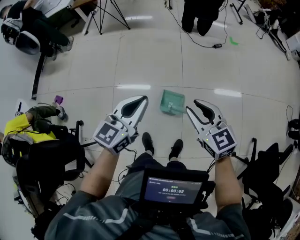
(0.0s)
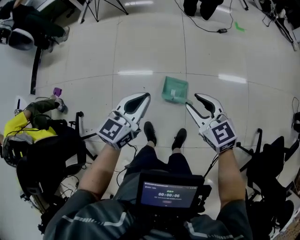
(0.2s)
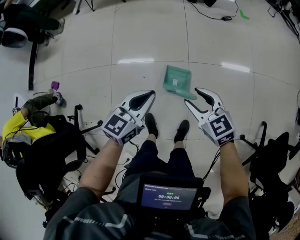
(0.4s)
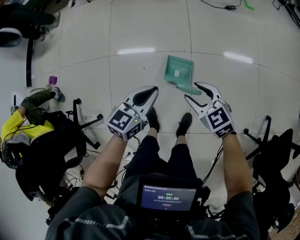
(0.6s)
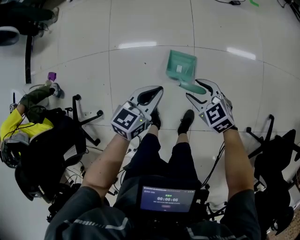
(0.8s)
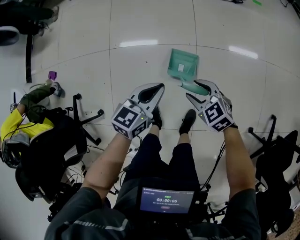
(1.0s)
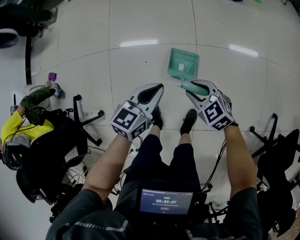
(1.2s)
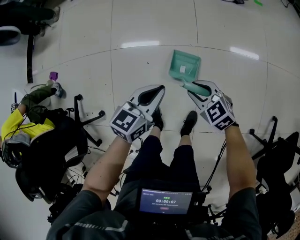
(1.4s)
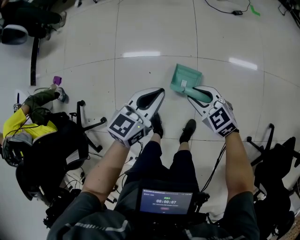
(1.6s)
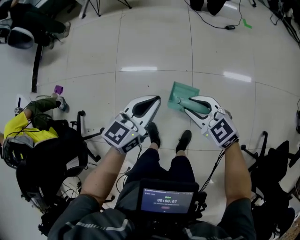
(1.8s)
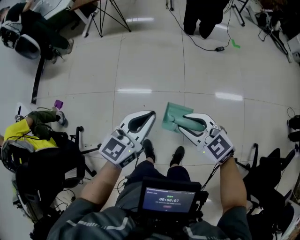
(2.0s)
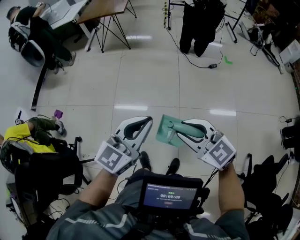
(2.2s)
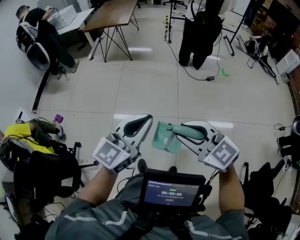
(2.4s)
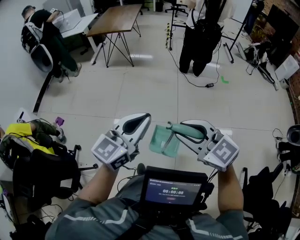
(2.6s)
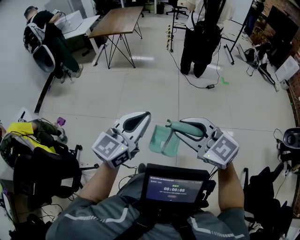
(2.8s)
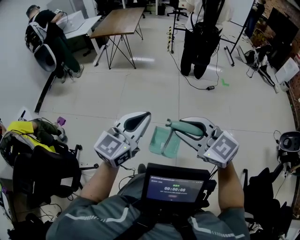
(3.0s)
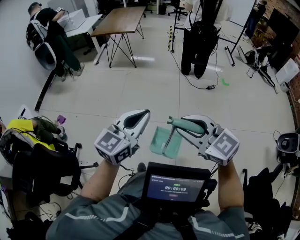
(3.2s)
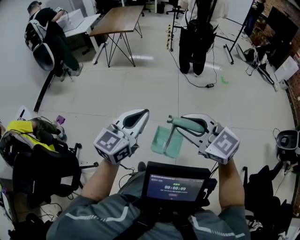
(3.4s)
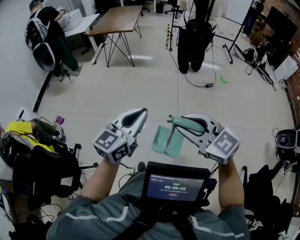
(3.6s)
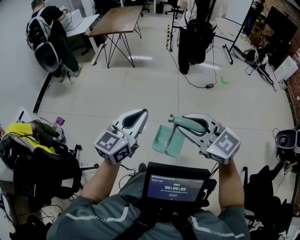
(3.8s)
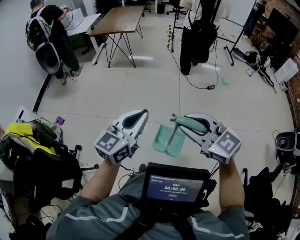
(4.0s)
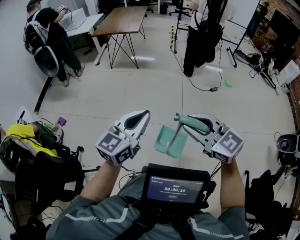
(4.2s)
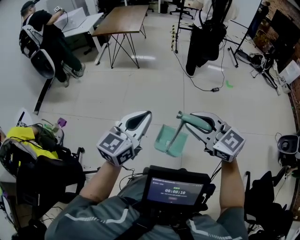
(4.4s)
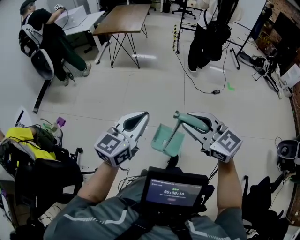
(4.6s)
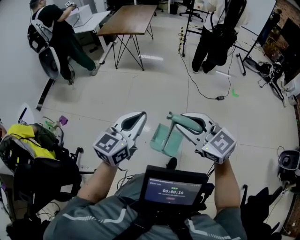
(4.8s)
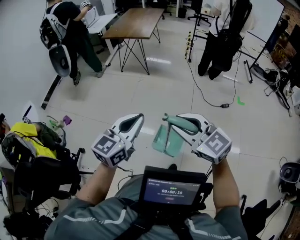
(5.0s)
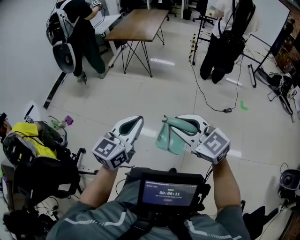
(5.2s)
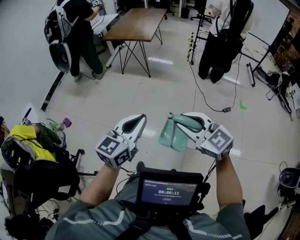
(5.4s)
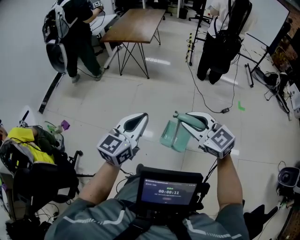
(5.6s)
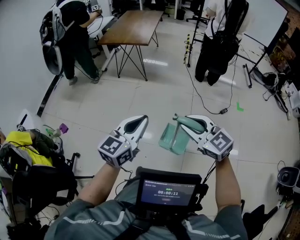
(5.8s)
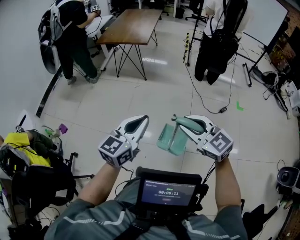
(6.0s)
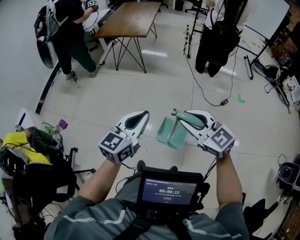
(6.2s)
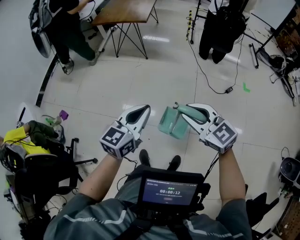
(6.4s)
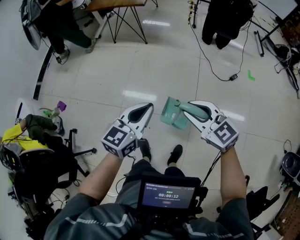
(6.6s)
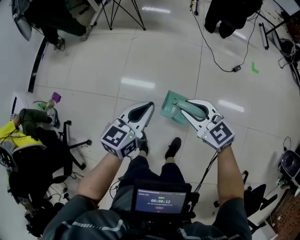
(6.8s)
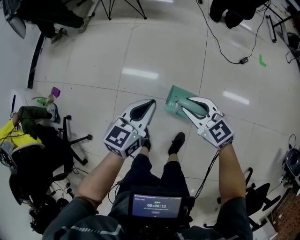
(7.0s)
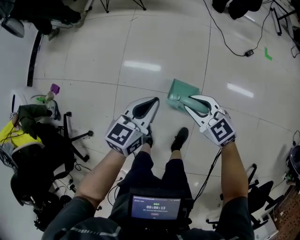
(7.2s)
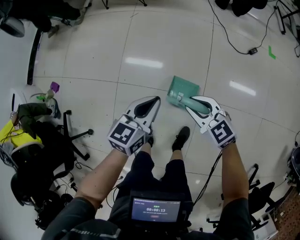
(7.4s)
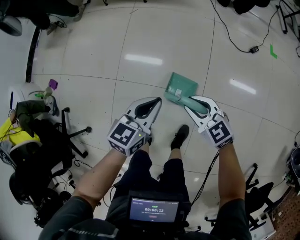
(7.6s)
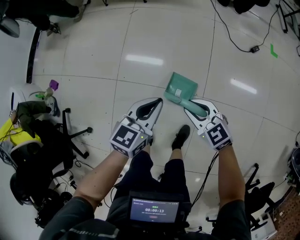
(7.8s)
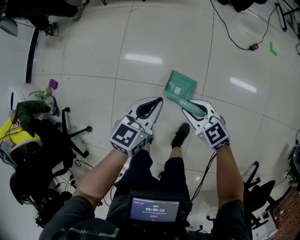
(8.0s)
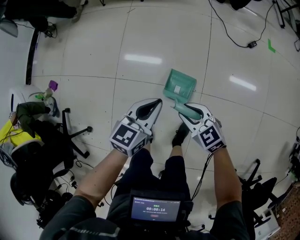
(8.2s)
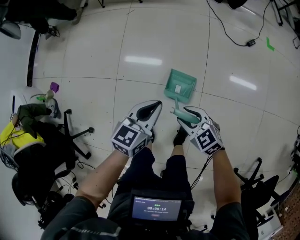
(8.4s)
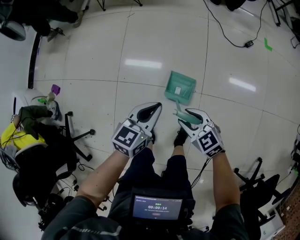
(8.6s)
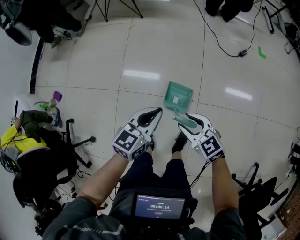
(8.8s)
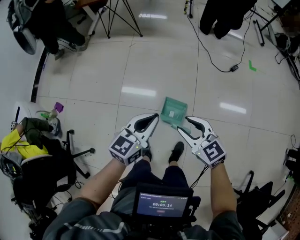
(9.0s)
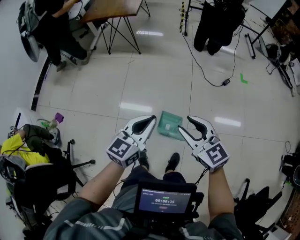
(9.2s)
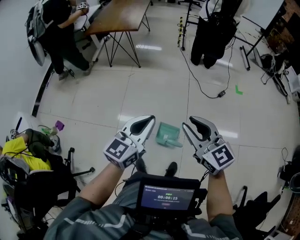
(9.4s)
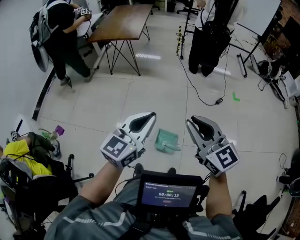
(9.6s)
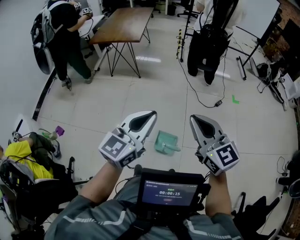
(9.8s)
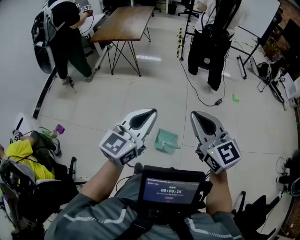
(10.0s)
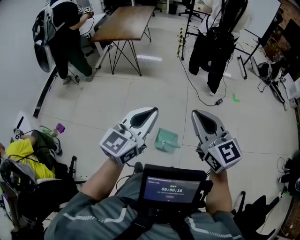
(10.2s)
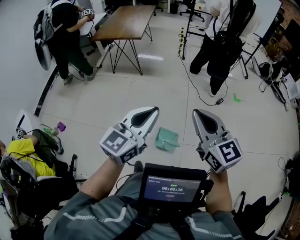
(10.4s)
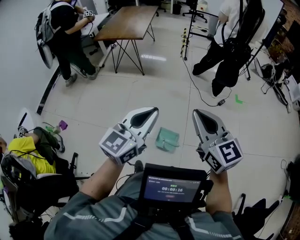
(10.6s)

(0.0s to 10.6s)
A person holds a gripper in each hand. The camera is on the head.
0.0s - 1.6s: Both grippers travel together downward, about 30 cm. The right gripper changes its angle by approximately 20 degrees, and opens, then closes once more.
1.6s - 3.0s: Both grippers move upward, some 50 cm. The left gripper rotates about 20 degrees. Meanwhile the right gripper swivels approximately 20 degrees.
3.0s - 4.6s: The left gripper travels forward and to the left by some 20 cm. Meanwhile the right gripper shifts approximately 20 cm forward.
4.6s - 6.0s: Both grippers move forward and to the right, approximately 25 cm.
6.0s - 7.6s: The grippers both shift downward by roughly 50 cm. The left gripper turns by some 20 degrees.
7.6s - 9.0s: The grippers both shift upward by approximately 25 cm.
9.0s - 10.6s: Both grippers move upward, roughly 35 cm. The right gripper turns by roughly 30 degrees, and closes.

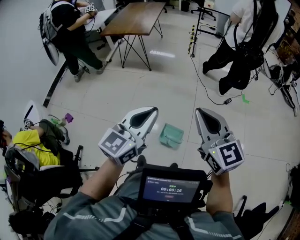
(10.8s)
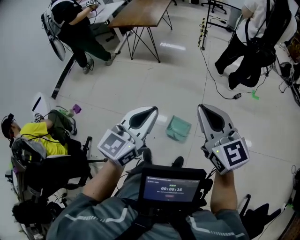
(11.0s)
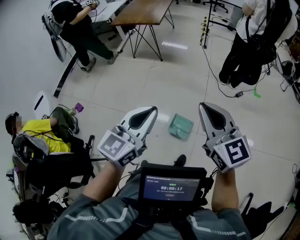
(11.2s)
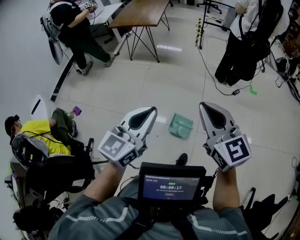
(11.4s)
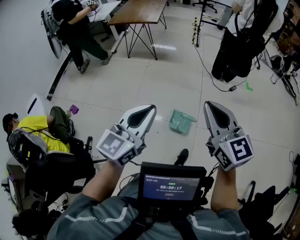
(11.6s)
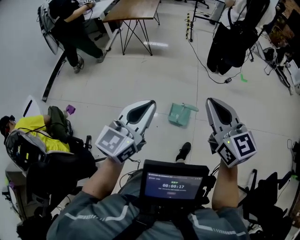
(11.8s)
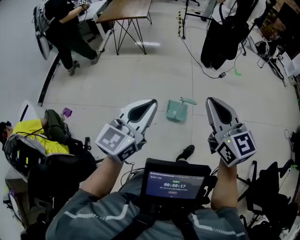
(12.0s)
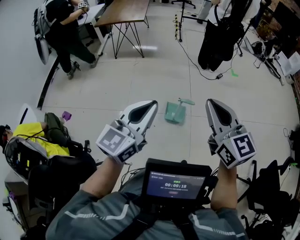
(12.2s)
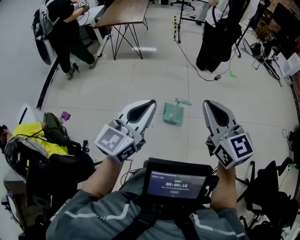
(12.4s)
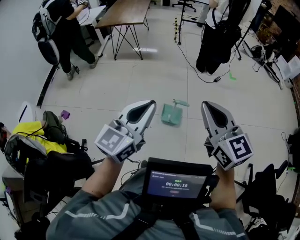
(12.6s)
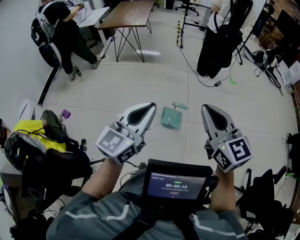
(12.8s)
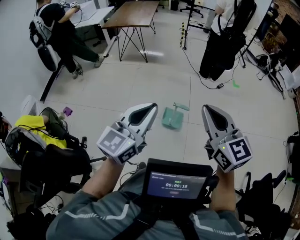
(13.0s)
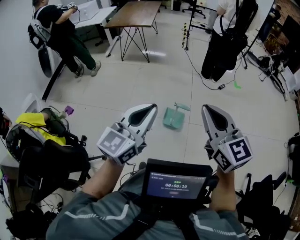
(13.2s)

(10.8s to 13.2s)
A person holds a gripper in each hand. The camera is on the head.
10.8s - 12.0s: The grippers both shift backward and to the left by approximately 35 cm.
12.0s - 13.2s: Both grippers move to the right and backward, approximately 10 cm.

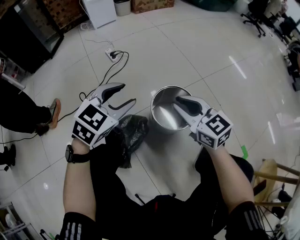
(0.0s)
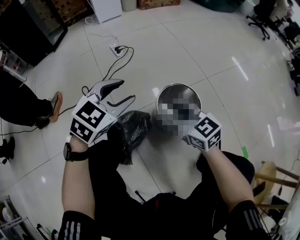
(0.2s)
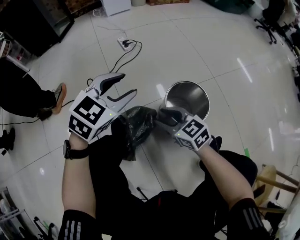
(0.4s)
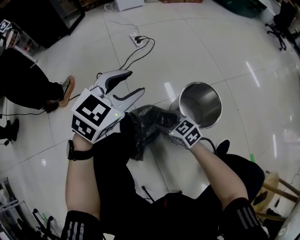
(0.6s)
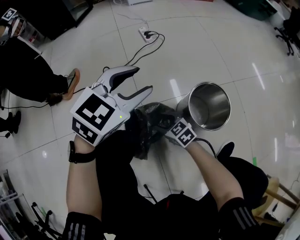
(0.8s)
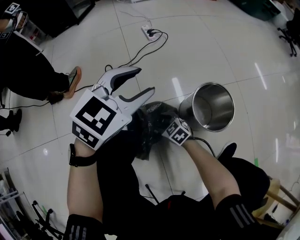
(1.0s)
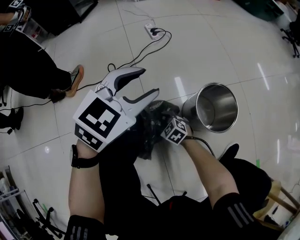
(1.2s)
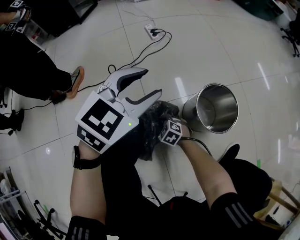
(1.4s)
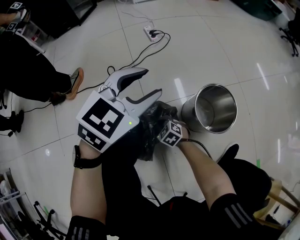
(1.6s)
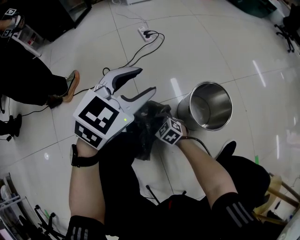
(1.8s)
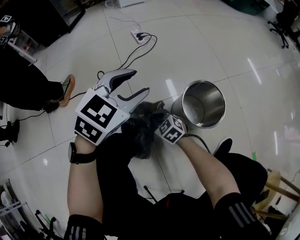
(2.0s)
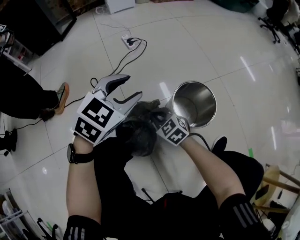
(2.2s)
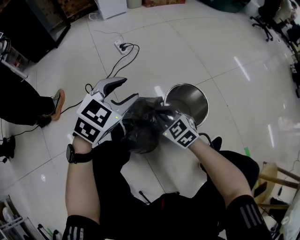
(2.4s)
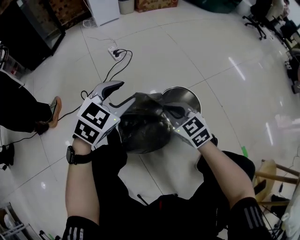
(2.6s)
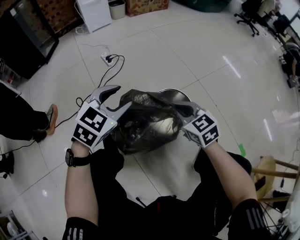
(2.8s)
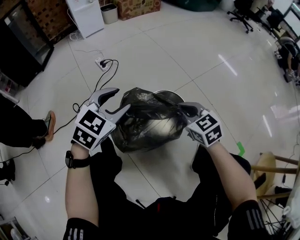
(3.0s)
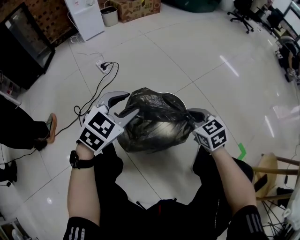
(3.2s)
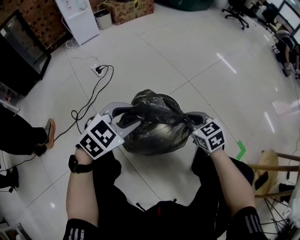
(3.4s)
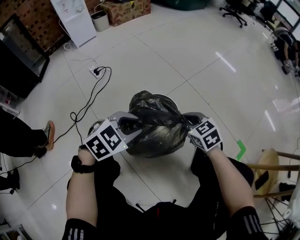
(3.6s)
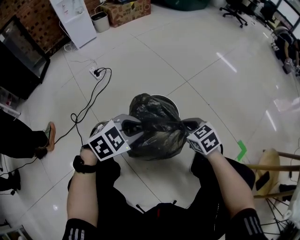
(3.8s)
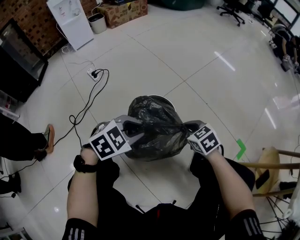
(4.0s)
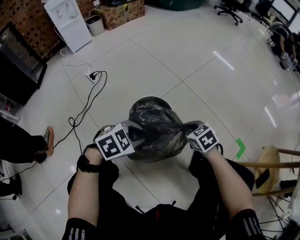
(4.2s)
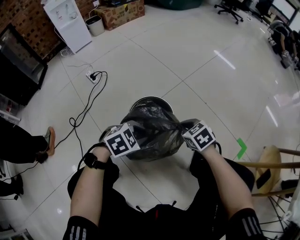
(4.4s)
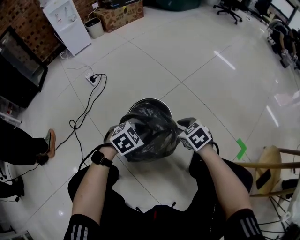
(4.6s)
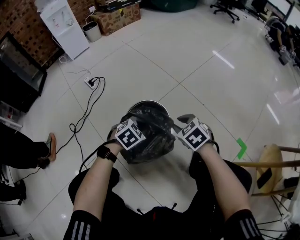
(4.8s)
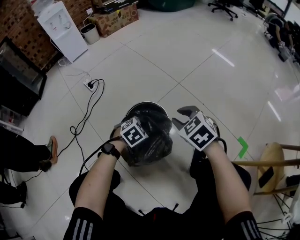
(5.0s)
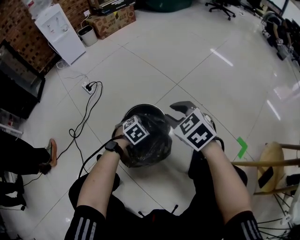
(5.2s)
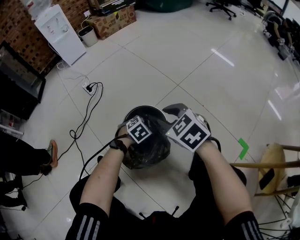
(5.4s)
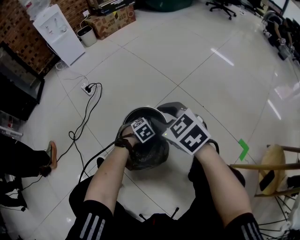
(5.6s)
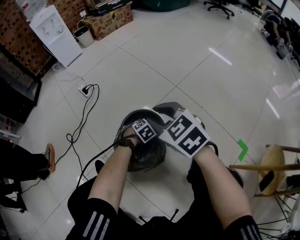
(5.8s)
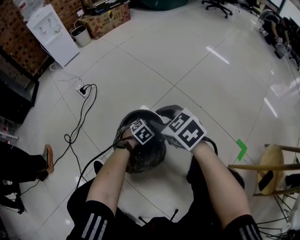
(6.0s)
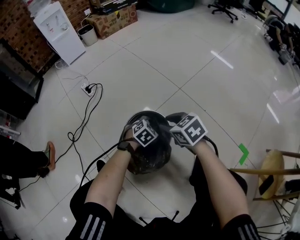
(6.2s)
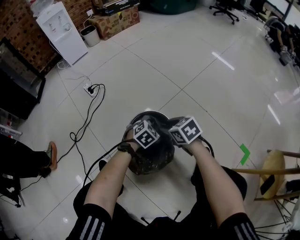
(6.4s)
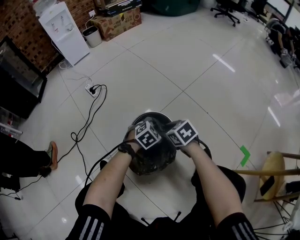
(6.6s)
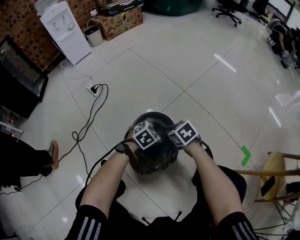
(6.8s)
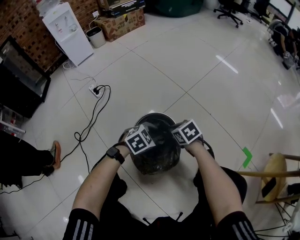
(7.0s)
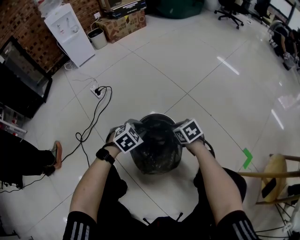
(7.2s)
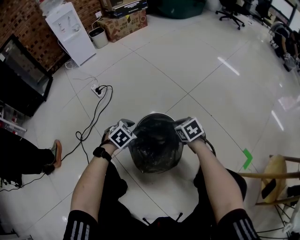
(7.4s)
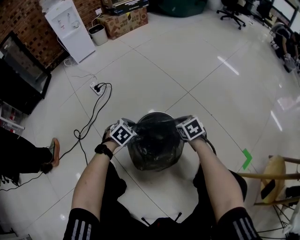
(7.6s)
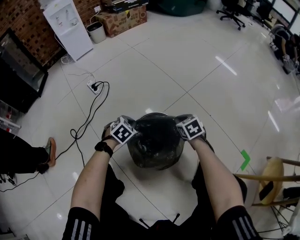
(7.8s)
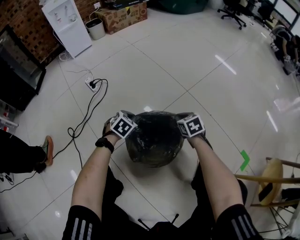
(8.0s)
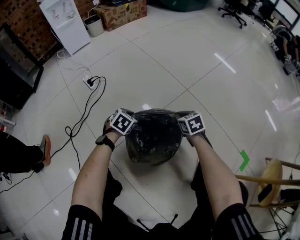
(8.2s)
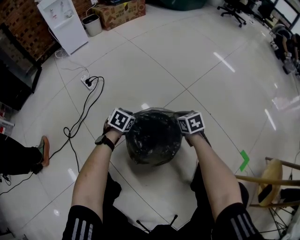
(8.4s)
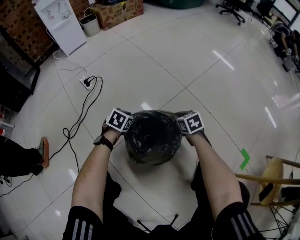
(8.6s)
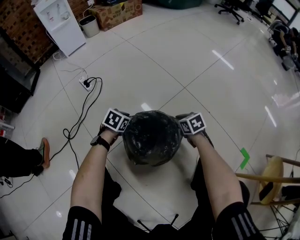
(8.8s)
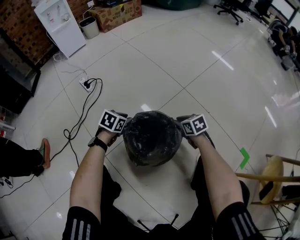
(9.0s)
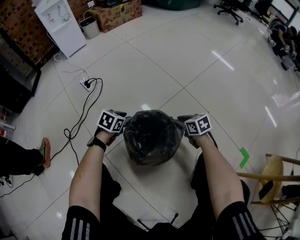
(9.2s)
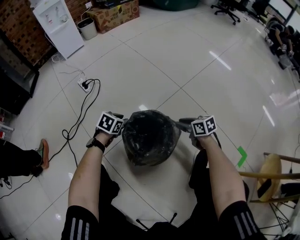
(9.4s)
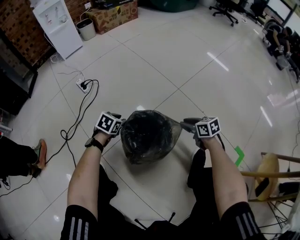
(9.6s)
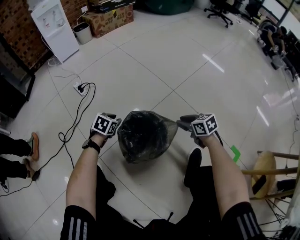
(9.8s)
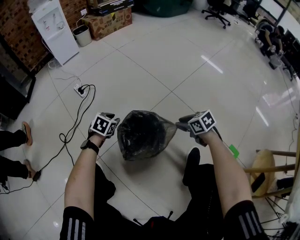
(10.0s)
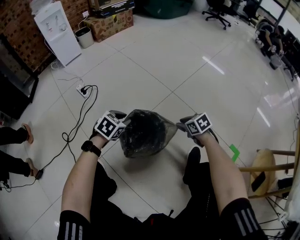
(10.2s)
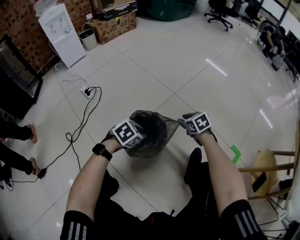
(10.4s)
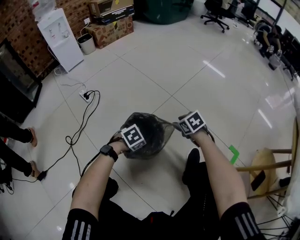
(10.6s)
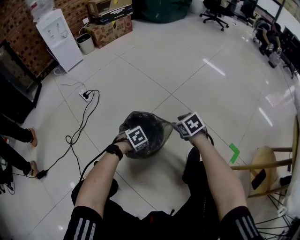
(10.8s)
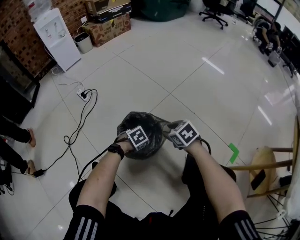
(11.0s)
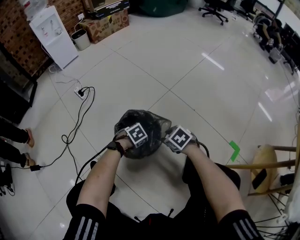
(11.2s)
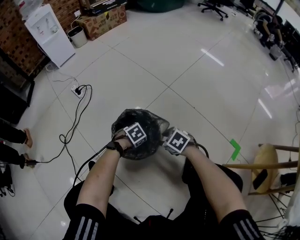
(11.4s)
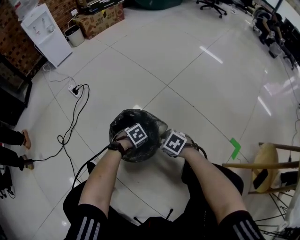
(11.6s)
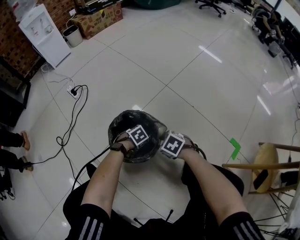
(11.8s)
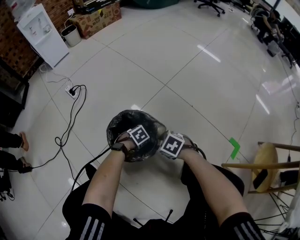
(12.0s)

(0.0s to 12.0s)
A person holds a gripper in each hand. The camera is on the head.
0.0s - 1.6s: The left gripper heads to the left, covering about 10 cm, while the right gripper goes about 40 cm downward and to the left, tips its fingers downward by about 40 degrees, and opens, then closes once more.
1.6s - 3.0s: The left gripper shifts some 10 cm to the right. Meanwhile the right gripper shifts about 40 cm to the right and upward, and rotates approximately 40 degrees.
3.0s - 4.4s: The two grippers go about 20 cm to the right and downward. The right gripper rotates roughly 20 degrees; the left gripper rotates roughly 40 degrees, and closes its fingers.
4.4s - 6.0s: The right gripper is displaced upward, forward and to the left by about 15 cm, while the left gripper is displaced downward and forward by roughly 25 cm.
6.0s - 7.6s: The left gripper heads to the left and upward, covering some 15 cm. Meanwhile the right gripper moves downward, some 15 cm.
7.6s - 9.0s: The right gripper goes some 10 cm downward, while the left gripper moves forward and downward, approximately 10 cm, and changes its angle by some 20 degrees.
9.0s - 10.4s: The left gripper shifts by approximately 20 cm, and changes its angle by roughly 30 degrees; the right gripper travels upward by about 10 cm.
10.4s - 12.0s: The left gripper moves downward, roughly 20 cm, and changes its angle by roughly 20 degrees. Meanwhile the right gripper changes place by approximately 15 cm, and changes its angle by approximately 30 degrees.
